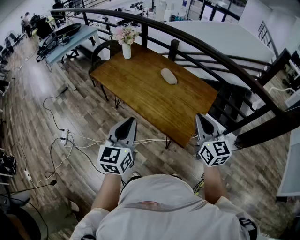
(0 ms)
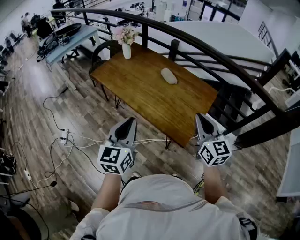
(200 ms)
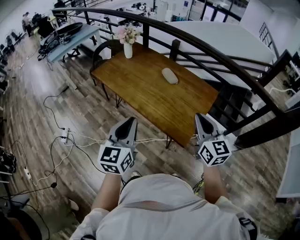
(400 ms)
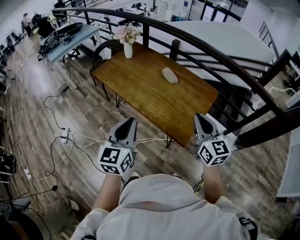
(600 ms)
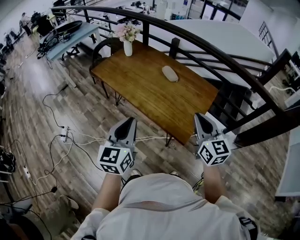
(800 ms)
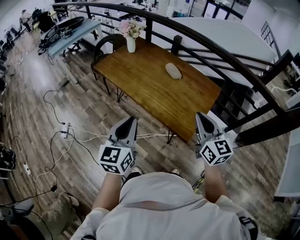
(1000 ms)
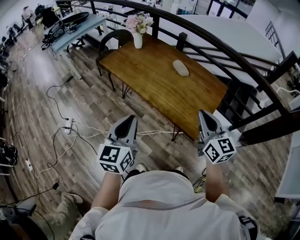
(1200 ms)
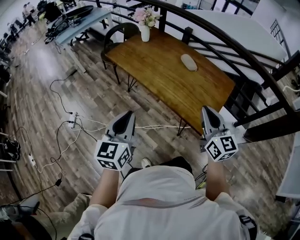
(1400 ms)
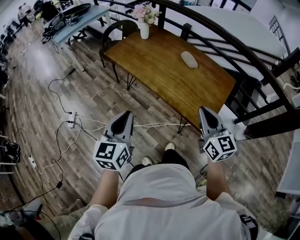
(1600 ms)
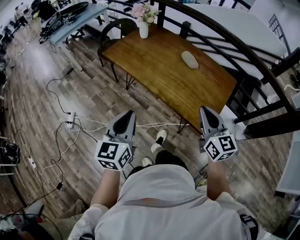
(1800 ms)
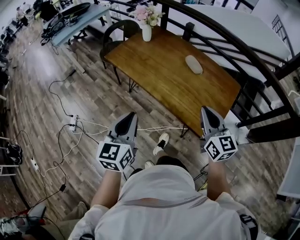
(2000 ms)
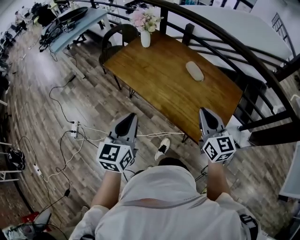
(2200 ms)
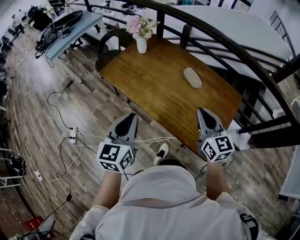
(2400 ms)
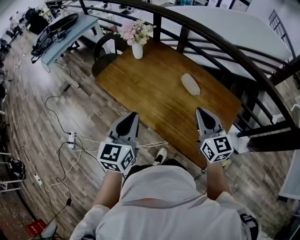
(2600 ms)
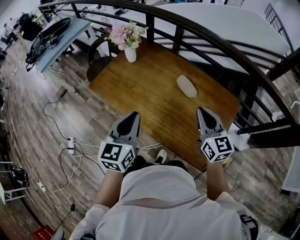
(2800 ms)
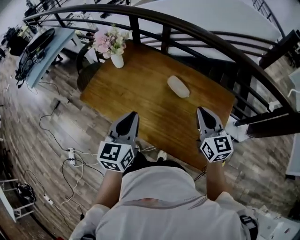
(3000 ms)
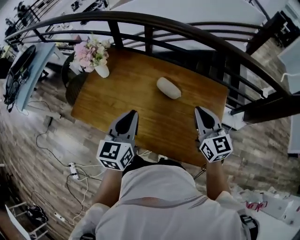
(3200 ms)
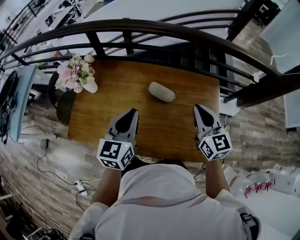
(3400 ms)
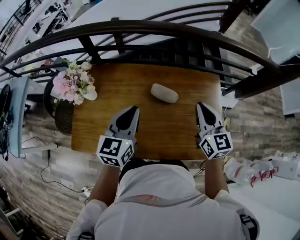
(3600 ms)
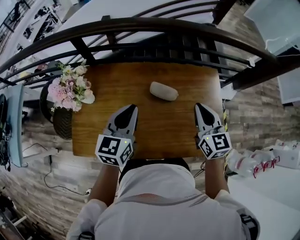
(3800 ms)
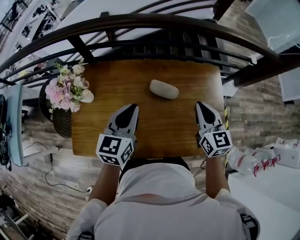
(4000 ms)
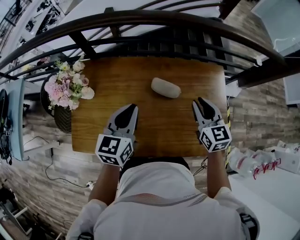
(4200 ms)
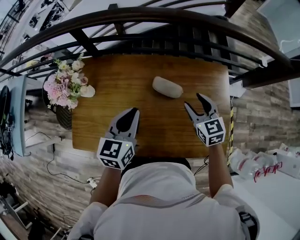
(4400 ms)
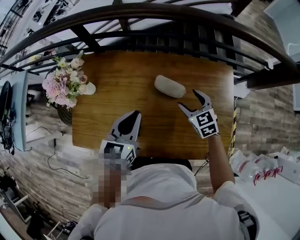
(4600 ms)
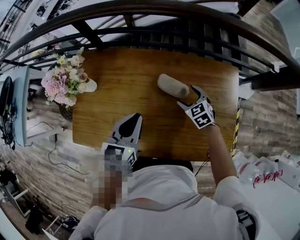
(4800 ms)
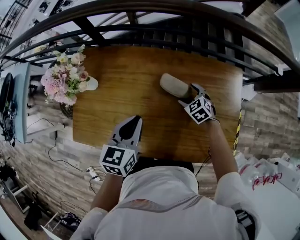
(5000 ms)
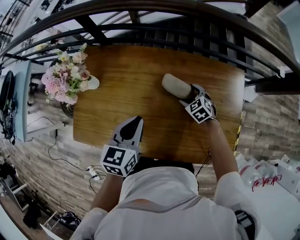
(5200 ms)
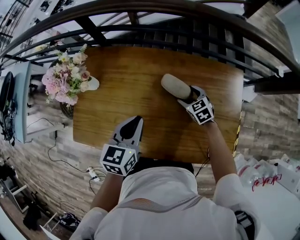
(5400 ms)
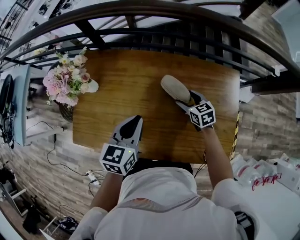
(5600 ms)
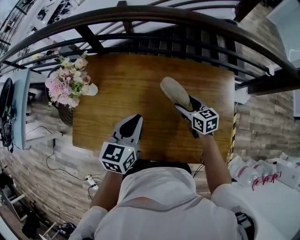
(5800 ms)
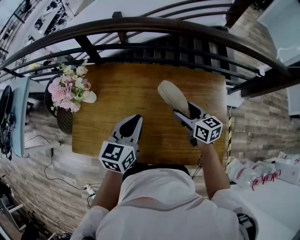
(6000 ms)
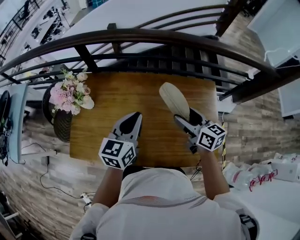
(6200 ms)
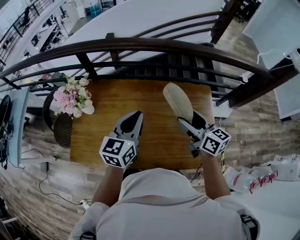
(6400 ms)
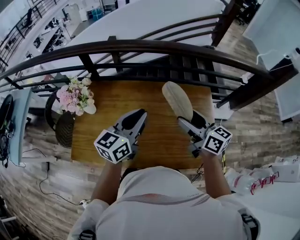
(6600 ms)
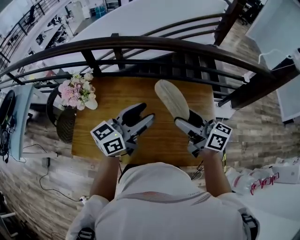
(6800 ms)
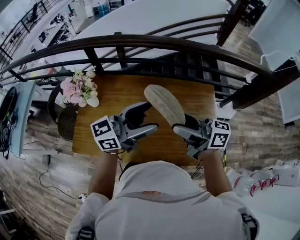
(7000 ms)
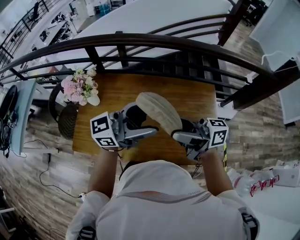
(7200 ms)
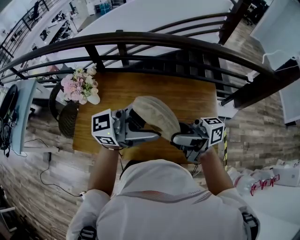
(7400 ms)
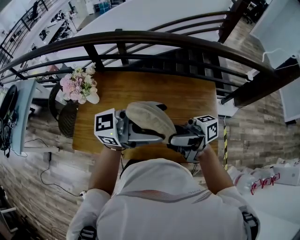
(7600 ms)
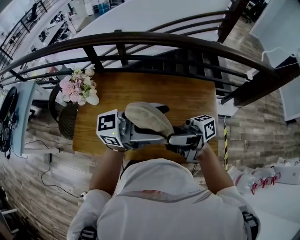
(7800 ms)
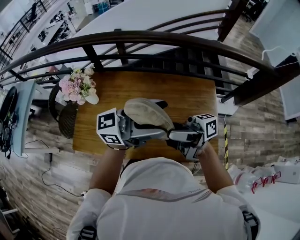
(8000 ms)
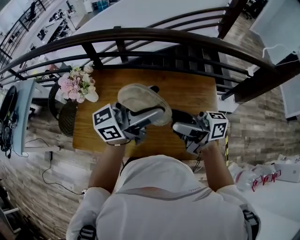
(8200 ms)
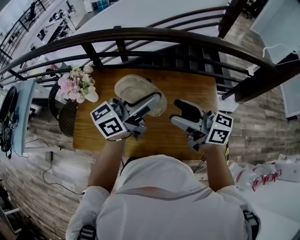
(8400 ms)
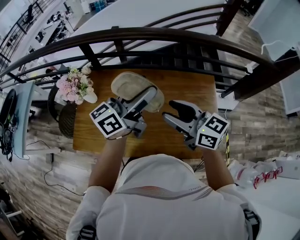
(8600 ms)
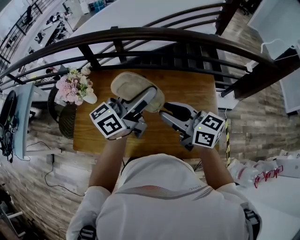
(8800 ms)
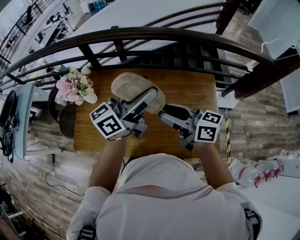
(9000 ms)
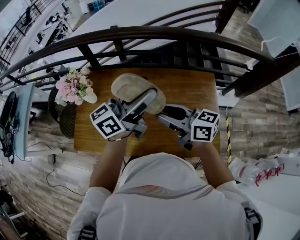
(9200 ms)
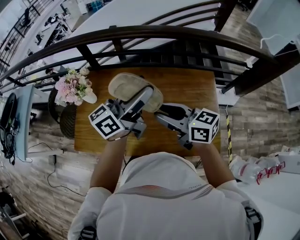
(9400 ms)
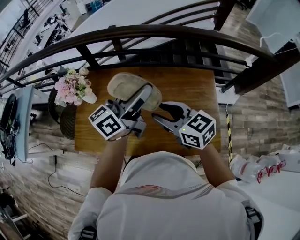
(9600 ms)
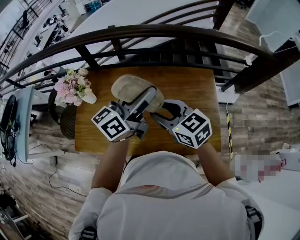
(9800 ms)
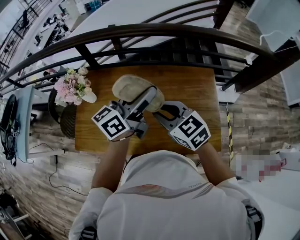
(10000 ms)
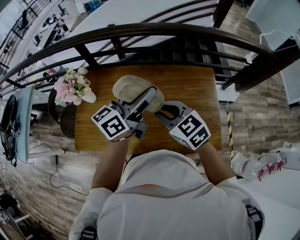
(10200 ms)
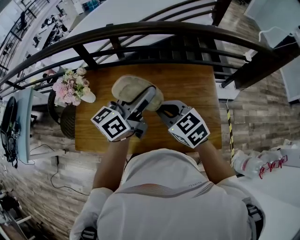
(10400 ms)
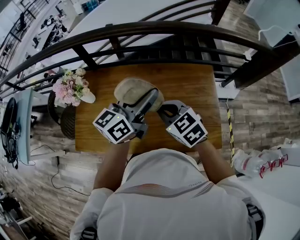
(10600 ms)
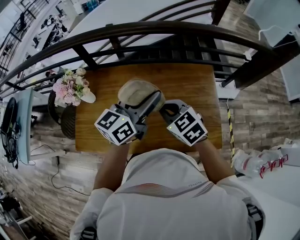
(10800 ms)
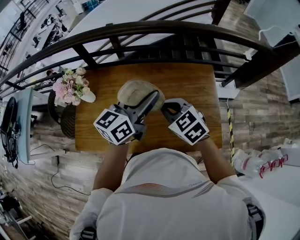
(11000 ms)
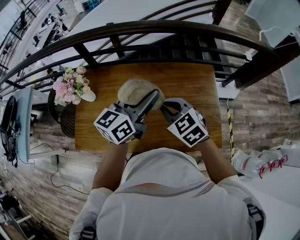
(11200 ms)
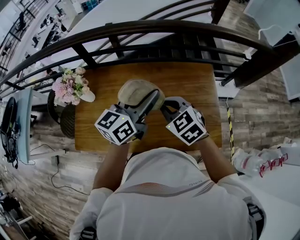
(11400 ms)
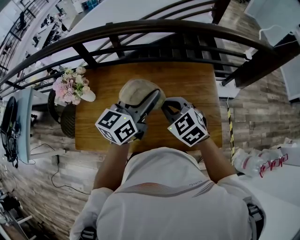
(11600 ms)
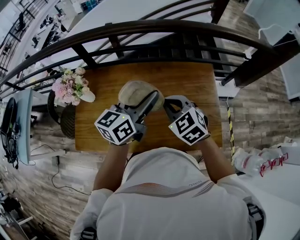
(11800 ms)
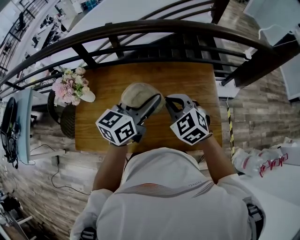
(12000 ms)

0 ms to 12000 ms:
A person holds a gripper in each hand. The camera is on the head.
0 ms to 1600 ms: Both grippers travel together to the left, roughly 15 cm.
1600 ms to 3000 ms: The grippers both shift forward by about 35 cm.
3000 ms to 4400 ms: The right gripper shifts by approximately 15 cm, turns by some 30 degrees, and opens up. Meanwhile the left gripper moves some 20 cm, and changes its angle by roughly 30 degrees.
4400 ms to 6000 ms: The right gripper goes downward and returns, about 20 cm each way, and swivels roughly 30 degrees.
6000 ms to 7600 ms: The two grippers go some 20 cm upward. The left gripper tips its fingers upward by about 40 degrees, and opens its fingers; the right gripper angles its fingers upward, by approximately 50 degrees.
7600 ms to 9000 ms: The left gripper ends up some 10 cm from where it was, and rotates some 40 degrees; the right gripper changes place by roughly 10 cm, changes its angle by approximately 50 degrees, and closes.
9000 ms to 10400 ms: The right gripper turns by roughly 50 degrees, and closes up.
10400 ms to 12000 ms: The right gripper swivels about 20 degrees.

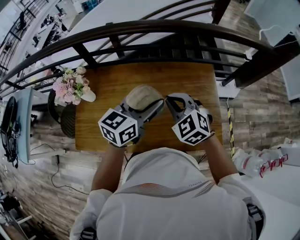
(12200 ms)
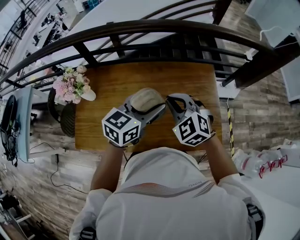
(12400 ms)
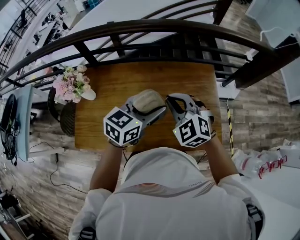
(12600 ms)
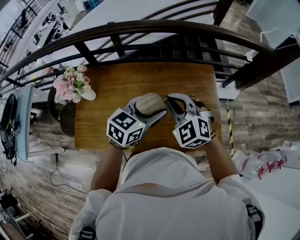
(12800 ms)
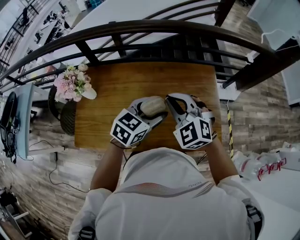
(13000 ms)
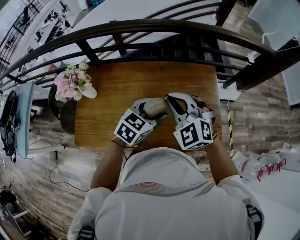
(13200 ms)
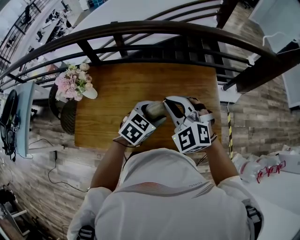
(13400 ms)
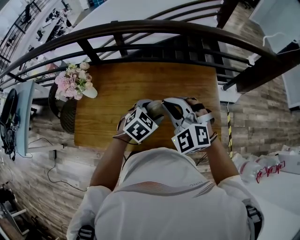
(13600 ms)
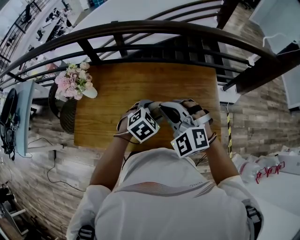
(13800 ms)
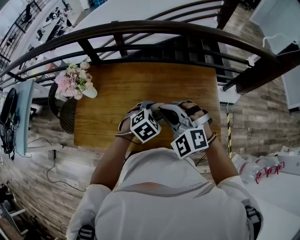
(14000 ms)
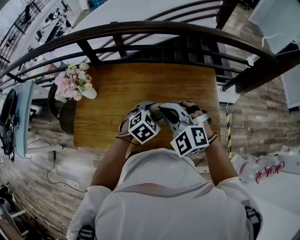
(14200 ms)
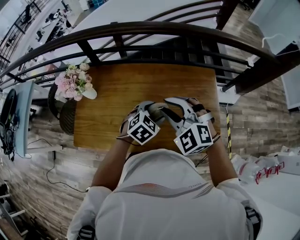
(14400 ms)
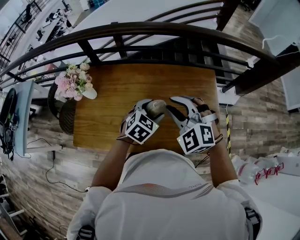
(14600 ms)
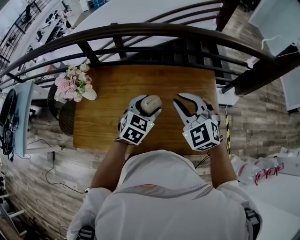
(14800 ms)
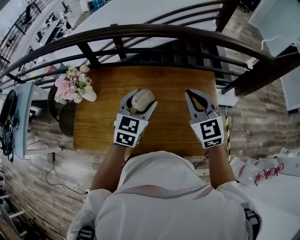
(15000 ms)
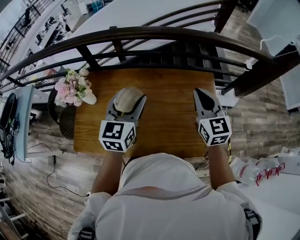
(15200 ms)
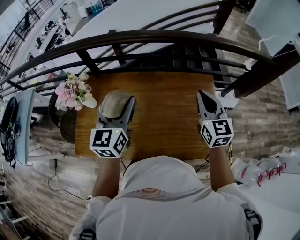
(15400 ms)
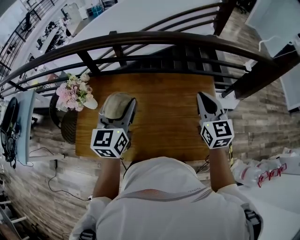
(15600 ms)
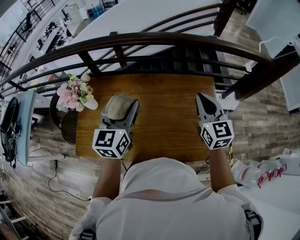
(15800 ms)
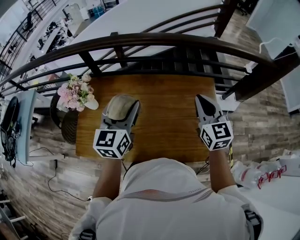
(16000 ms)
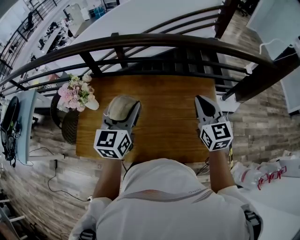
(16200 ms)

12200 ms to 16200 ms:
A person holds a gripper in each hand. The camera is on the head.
12200 ms to 13600 ms: The left gripper heads downward, covering approximately 15 cm, and tips its fingers downward by some 40 degrees. The right gripper ends up roughly 5 cm from where it was, and rotates some 20 degrees.
13600 ms to 14800 ms: The left gripper shifts by approximately 5 cm. The right gripper moves some 5 cm.
14800 ms to 16200 ms: The left gripper goes about 15 cm upward and to the left, and turns by roughly 40 degrees, while the right gripper moves to the right, approximately 10 cm, and rotates approximately 40 degrees.

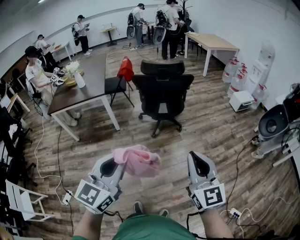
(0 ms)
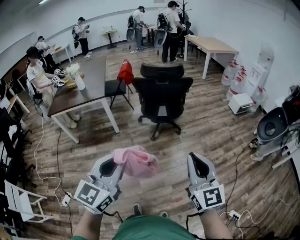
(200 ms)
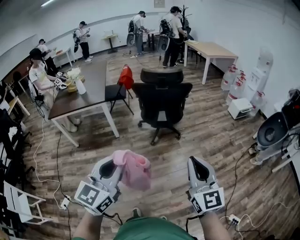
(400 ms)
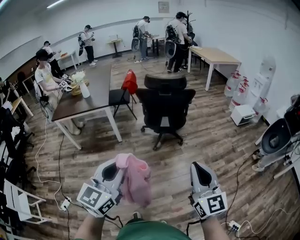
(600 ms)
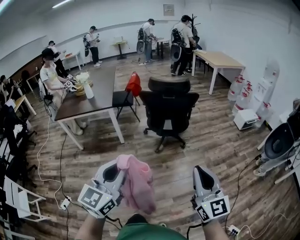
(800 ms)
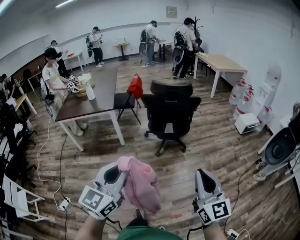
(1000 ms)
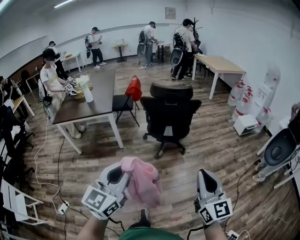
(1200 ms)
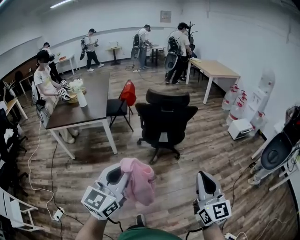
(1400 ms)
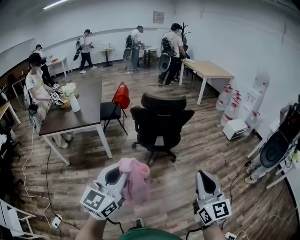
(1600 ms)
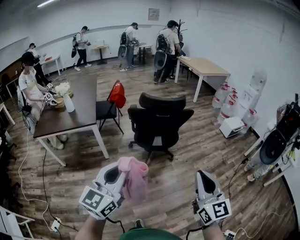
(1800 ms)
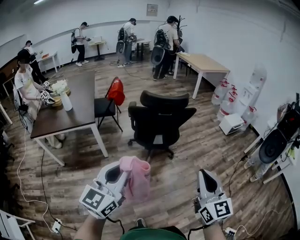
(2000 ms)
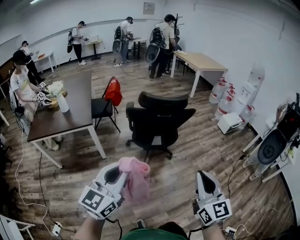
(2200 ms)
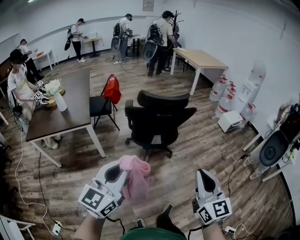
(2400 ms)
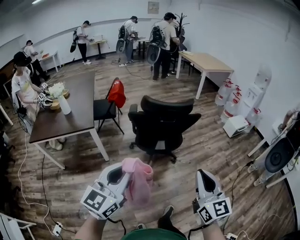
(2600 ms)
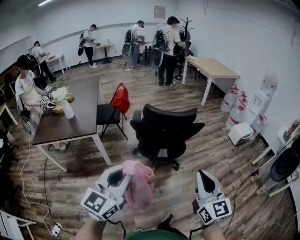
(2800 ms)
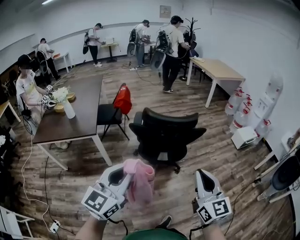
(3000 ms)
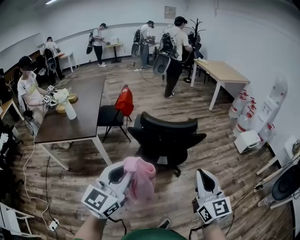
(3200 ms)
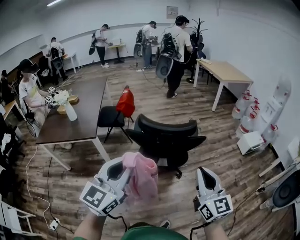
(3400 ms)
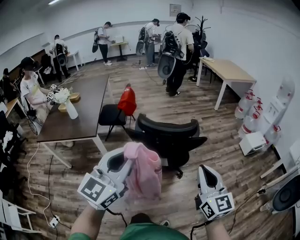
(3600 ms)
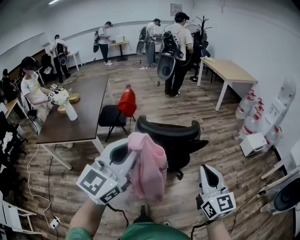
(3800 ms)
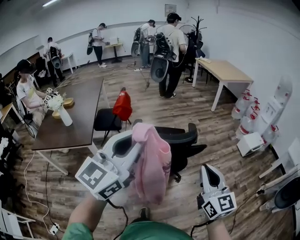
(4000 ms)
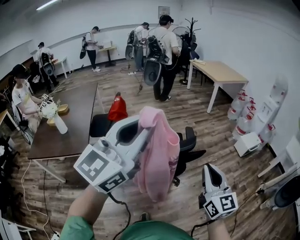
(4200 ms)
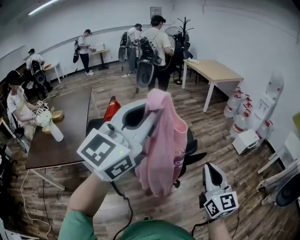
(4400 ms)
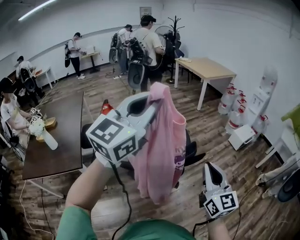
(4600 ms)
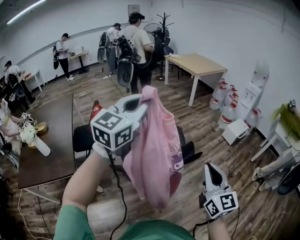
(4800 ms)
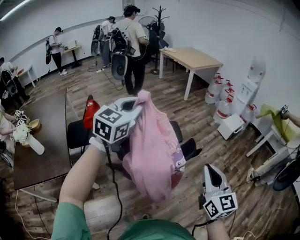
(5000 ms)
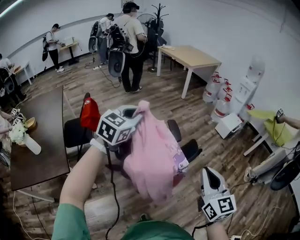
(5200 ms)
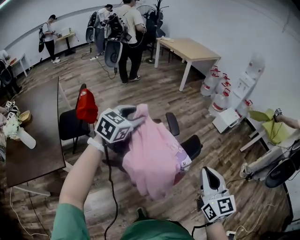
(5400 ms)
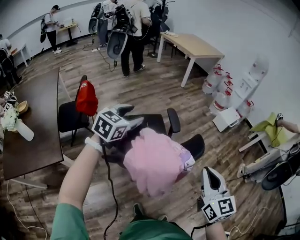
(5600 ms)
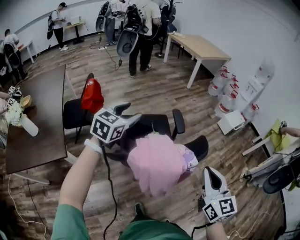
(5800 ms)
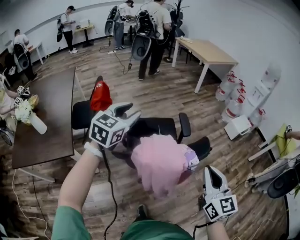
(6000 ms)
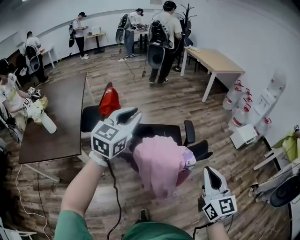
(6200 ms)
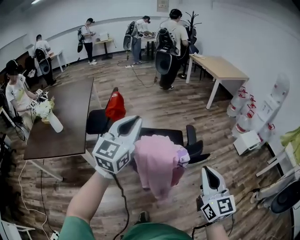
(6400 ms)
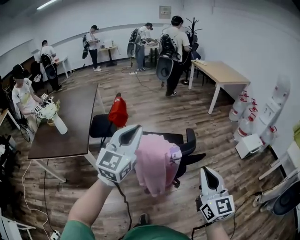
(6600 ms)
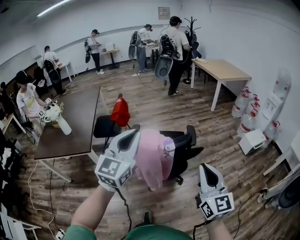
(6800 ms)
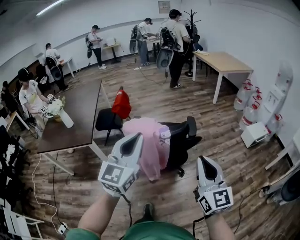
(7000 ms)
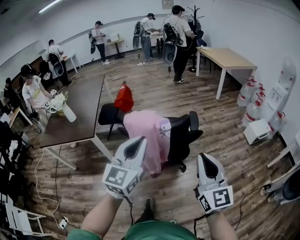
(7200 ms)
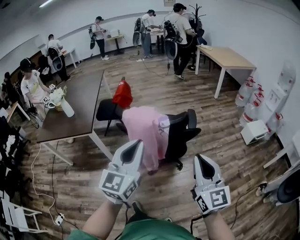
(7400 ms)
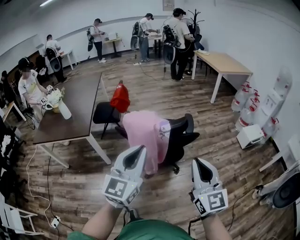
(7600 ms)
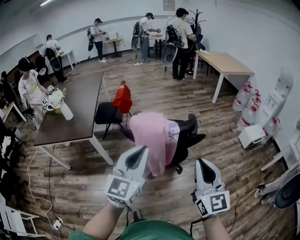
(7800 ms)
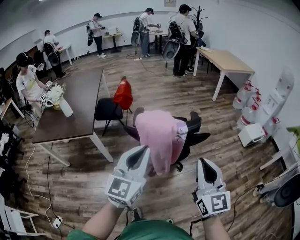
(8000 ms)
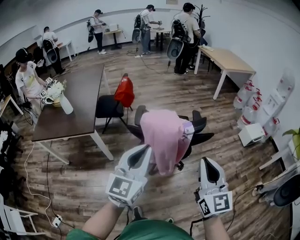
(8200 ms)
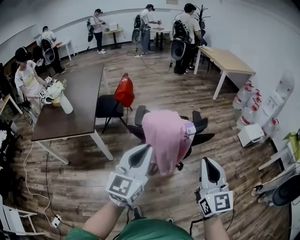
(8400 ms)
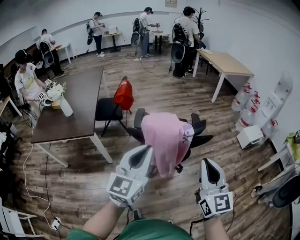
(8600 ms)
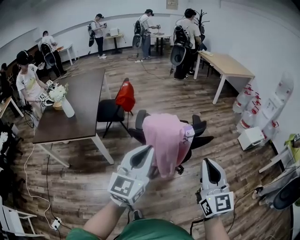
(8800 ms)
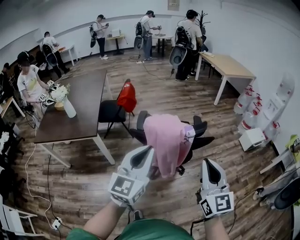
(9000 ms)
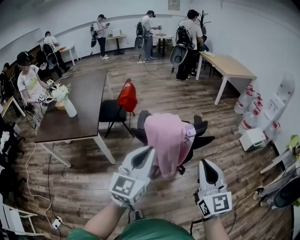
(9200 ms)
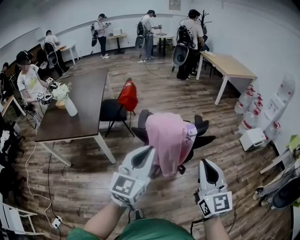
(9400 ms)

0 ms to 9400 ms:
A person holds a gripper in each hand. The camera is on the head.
0 ms to 1600 ms: The two grippers go some 10 cm forward.
1600 ms to 3200 ms: Both grippers move forward, roughly 30 cm.
3200 ms to 4800 ms: The right gripper is displaced forward by about 20 cm. The left gripper goes approximately 40 cm forward, and turns by some 20 degrees.
4800 ms to 6200 ms: The left gripper moves downward and to the left, roughly 15 cm, and opens, then closes once more.
6200 ms to 7800 ms: The right gripper is displaced backward by approximately 15 cm. The left gripper is displaced backward by approximately 30 cm.
7800 ms to 9400 ms: The grippers both shift to the left by about 5 cm.
